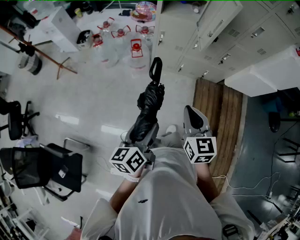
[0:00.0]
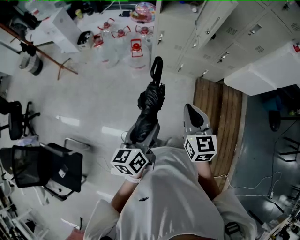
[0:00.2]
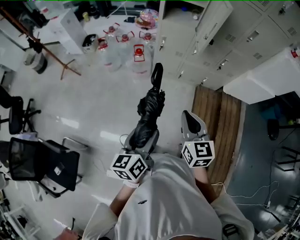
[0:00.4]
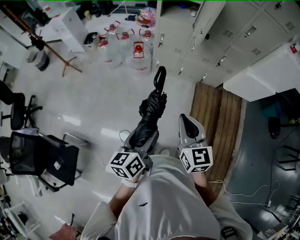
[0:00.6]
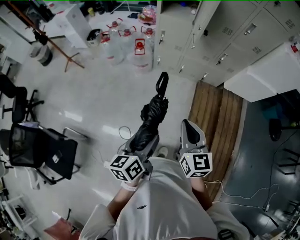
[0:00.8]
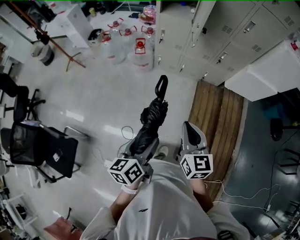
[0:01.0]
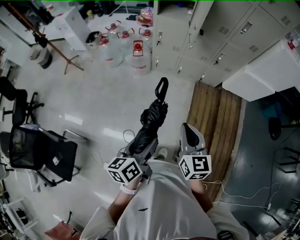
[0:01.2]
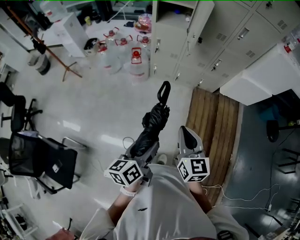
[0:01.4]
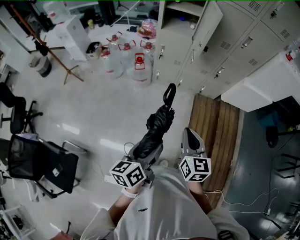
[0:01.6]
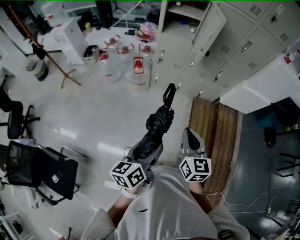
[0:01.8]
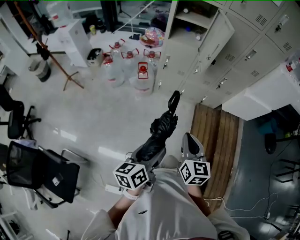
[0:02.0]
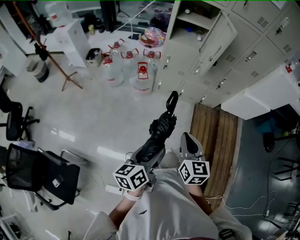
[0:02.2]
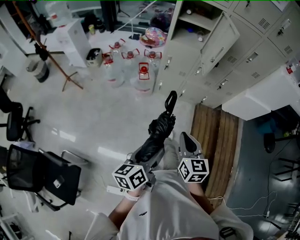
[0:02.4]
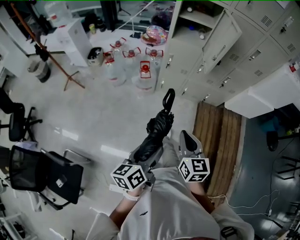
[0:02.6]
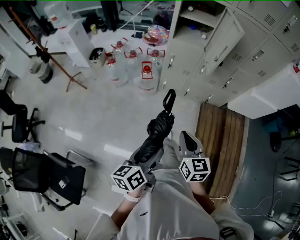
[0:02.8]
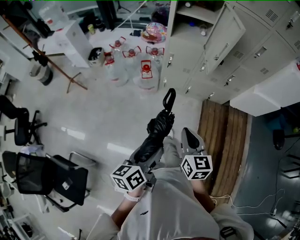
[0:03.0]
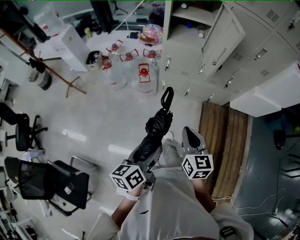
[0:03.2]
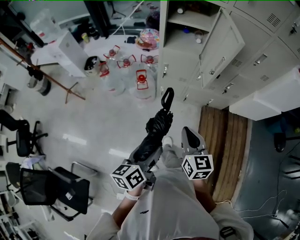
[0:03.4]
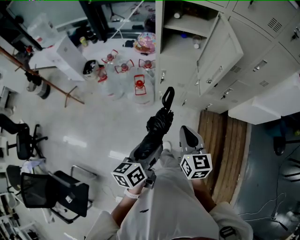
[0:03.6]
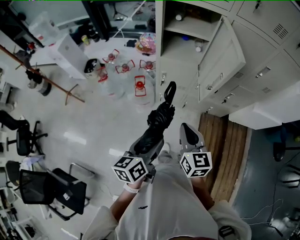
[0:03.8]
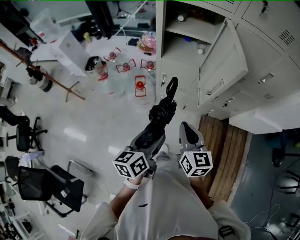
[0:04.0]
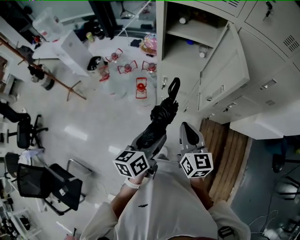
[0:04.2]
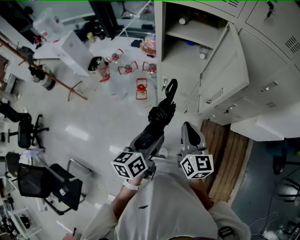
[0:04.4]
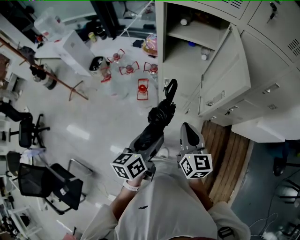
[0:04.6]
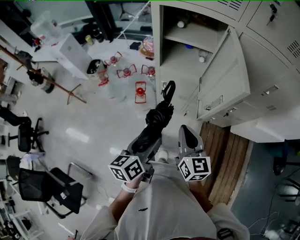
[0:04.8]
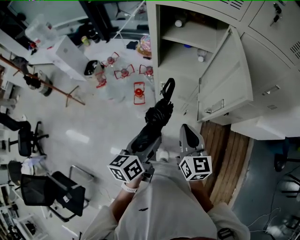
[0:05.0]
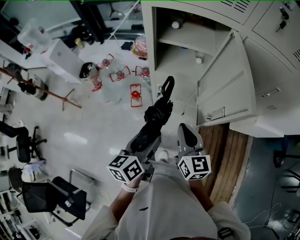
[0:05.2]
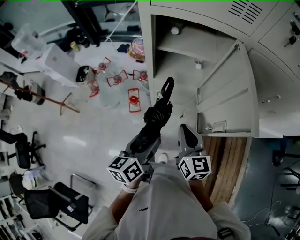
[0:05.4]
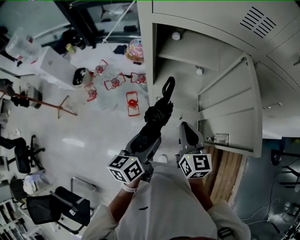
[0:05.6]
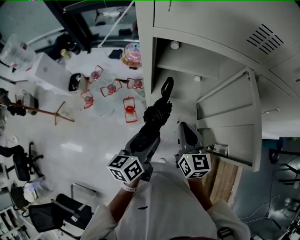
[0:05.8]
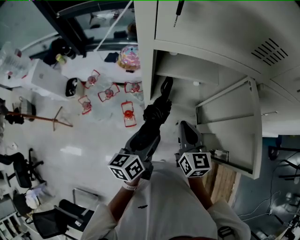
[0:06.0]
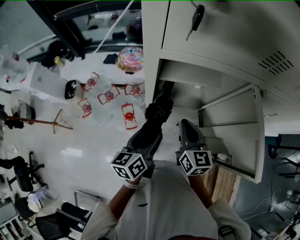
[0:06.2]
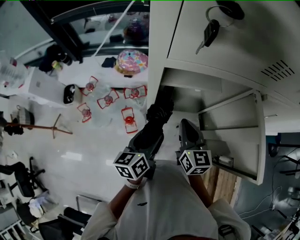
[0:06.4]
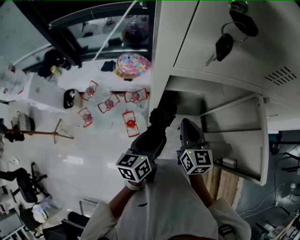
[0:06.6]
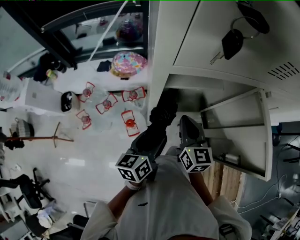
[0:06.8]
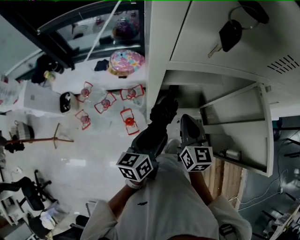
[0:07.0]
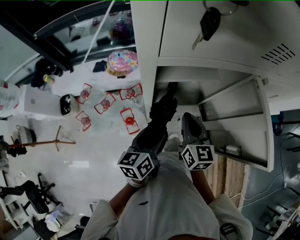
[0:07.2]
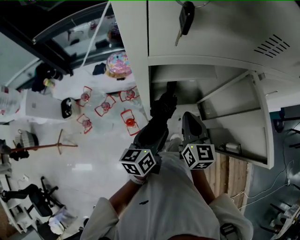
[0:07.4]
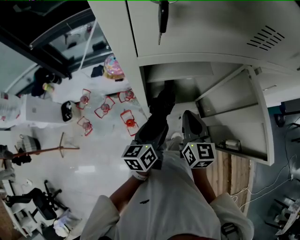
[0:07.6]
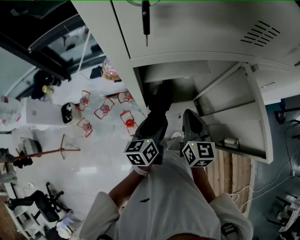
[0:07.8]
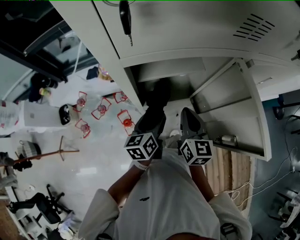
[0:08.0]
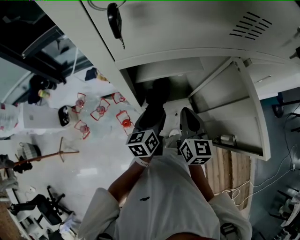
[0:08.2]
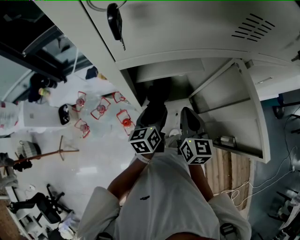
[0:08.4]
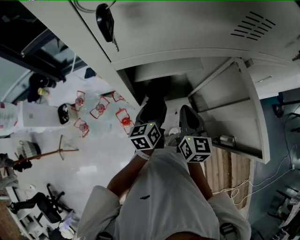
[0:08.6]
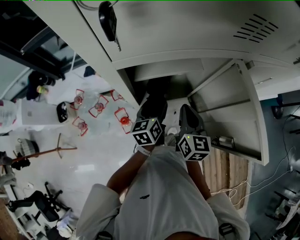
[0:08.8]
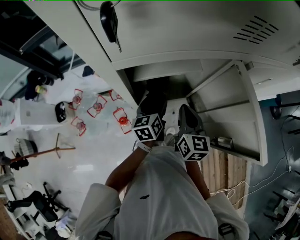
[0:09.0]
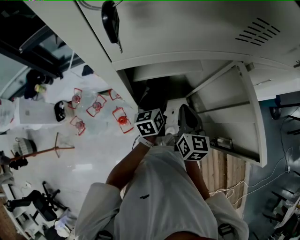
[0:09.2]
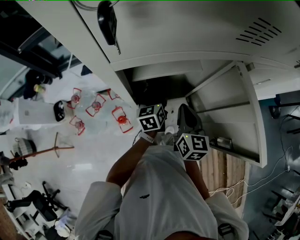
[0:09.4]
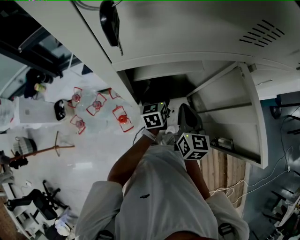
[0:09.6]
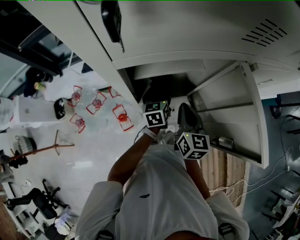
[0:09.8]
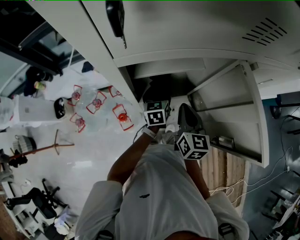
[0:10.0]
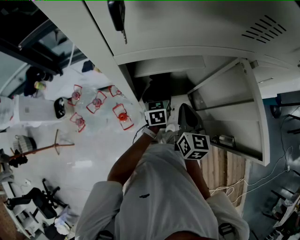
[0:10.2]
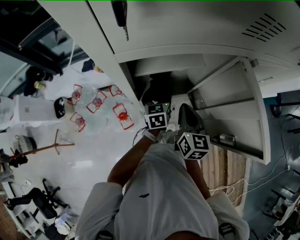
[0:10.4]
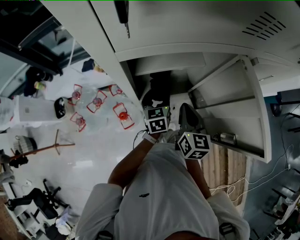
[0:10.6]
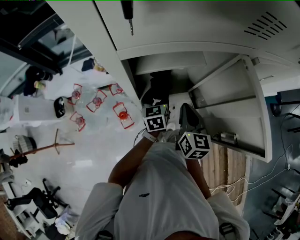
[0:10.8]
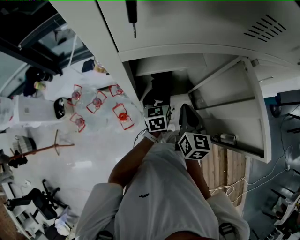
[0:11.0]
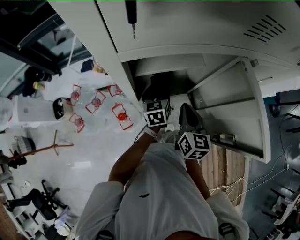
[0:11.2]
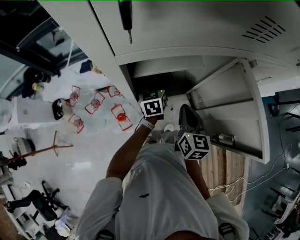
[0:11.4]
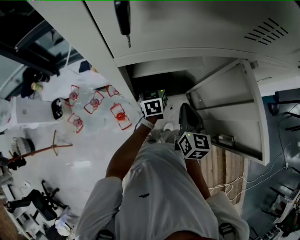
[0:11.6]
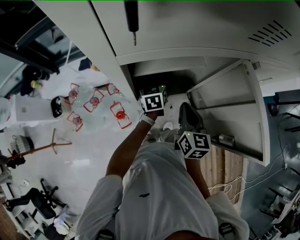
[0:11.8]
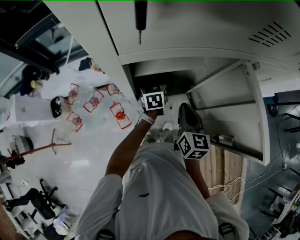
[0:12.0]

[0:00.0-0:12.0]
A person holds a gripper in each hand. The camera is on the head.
0:00.0 to 0:01.6: Both grippers travel together backward and to the right, roughly 15 cm.
0:01.6 to 0:03.0: The left gripper shifts some 15 cm to the left and forward; the right gripper goes roughly 15 cm forward and to the left.
0:03.0 to 0:04.4: The two grippers go roughly 30 cm forward.
0:04.4 to 0:06.0: The two grippers go about 25 cm forward.
0:06.0 to 0:07.6: The left gripper travels forward by some 5 cm.
0:07.6 to 0:09.0: The left gripper travels forward by roughly 10 cm.
0:10.4 to 0:12.0: The left gripper moves forward, some 5 cm.

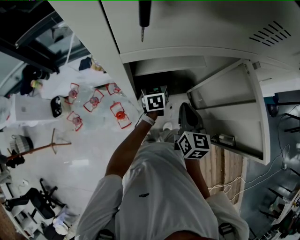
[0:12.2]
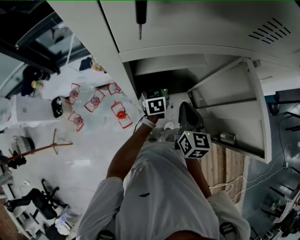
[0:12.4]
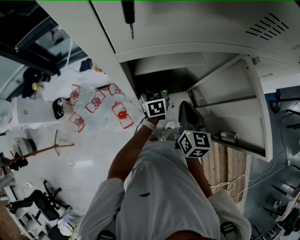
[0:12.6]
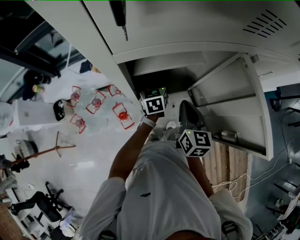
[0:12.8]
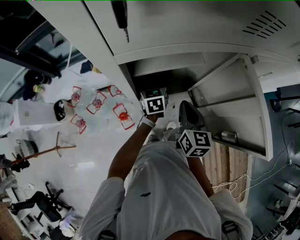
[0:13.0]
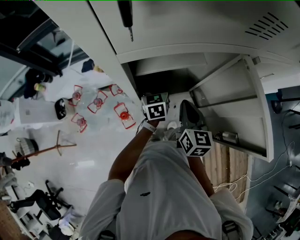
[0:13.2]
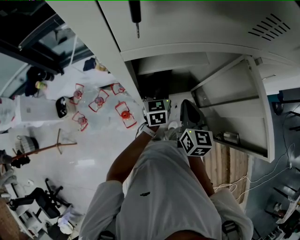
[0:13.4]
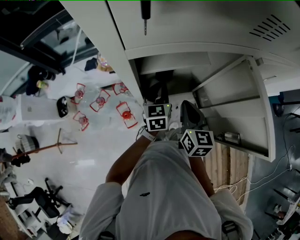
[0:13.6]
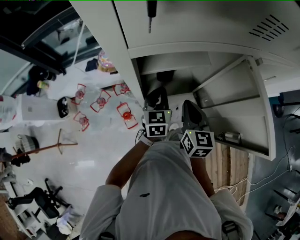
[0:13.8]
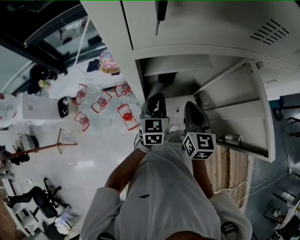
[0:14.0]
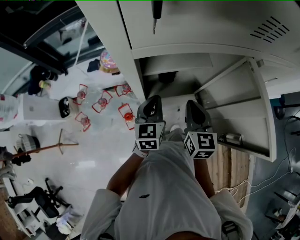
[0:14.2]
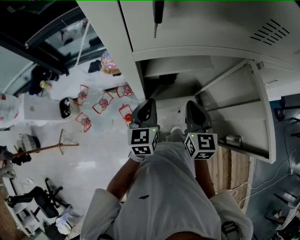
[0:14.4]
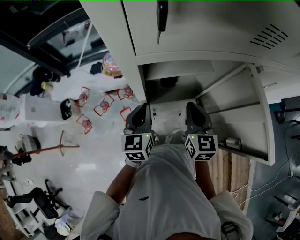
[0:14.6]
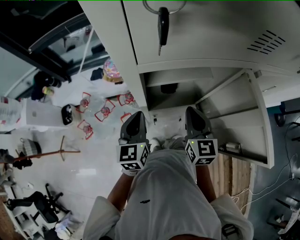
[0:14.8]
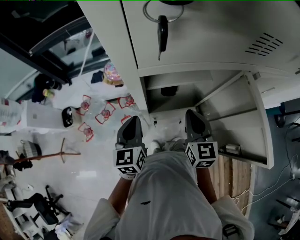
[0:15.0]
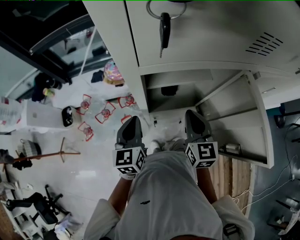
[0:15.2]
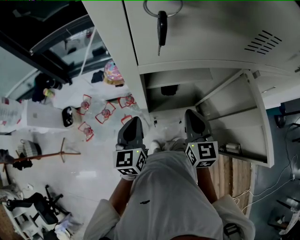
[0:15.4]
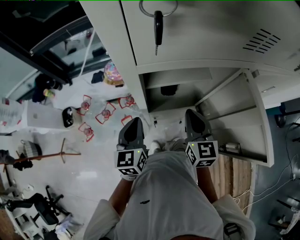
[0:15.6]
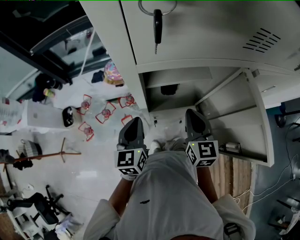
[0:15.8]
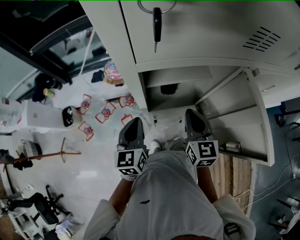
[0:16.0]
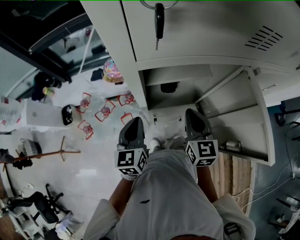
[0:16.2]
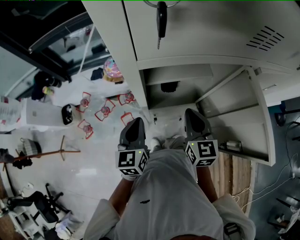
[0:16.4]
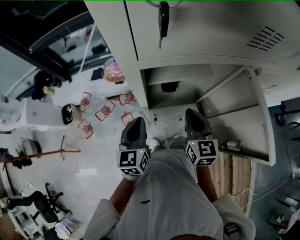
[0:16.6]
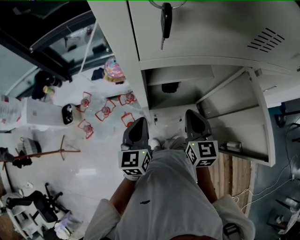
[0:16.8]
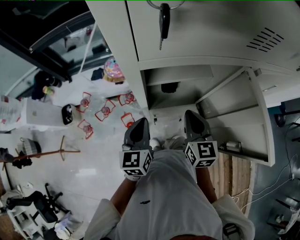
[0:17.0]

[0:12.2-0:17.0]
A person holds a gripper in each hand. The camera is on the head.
0:12.2 to 0:13.8: The left gripper travels backward and upward by about 10 cm, and closes up.
0:13.8 to 0:15.4: The left gripper travels to the left, backward and upward by approximately 15 cm.
0:15.4 to 0:17.0: The grippers make only small movements.

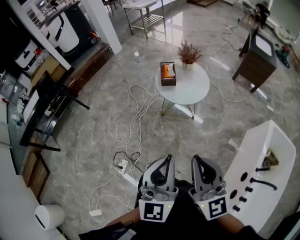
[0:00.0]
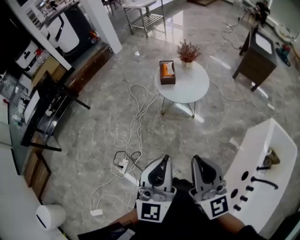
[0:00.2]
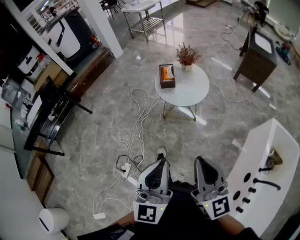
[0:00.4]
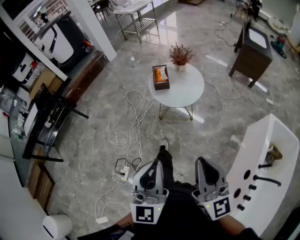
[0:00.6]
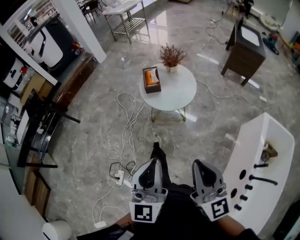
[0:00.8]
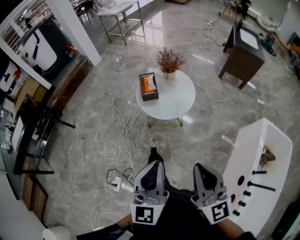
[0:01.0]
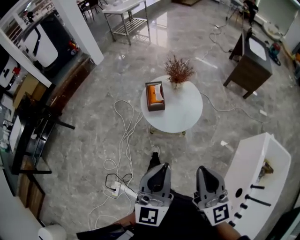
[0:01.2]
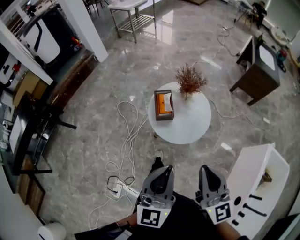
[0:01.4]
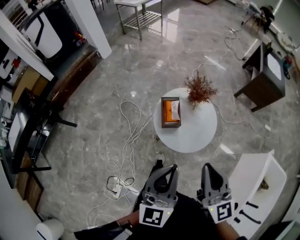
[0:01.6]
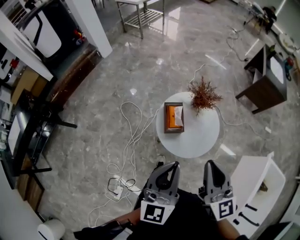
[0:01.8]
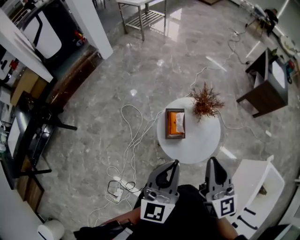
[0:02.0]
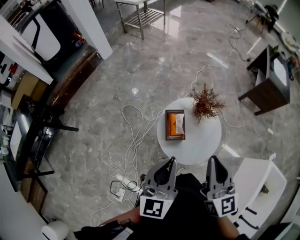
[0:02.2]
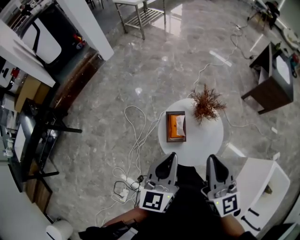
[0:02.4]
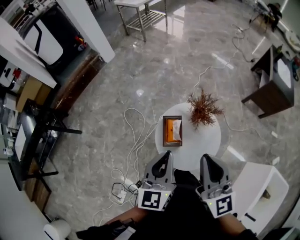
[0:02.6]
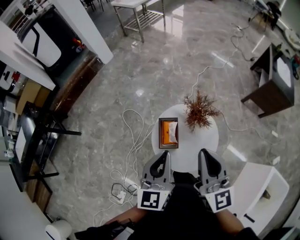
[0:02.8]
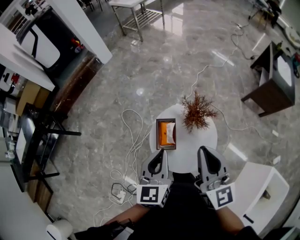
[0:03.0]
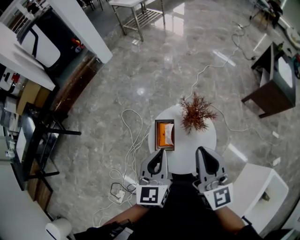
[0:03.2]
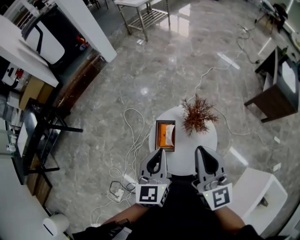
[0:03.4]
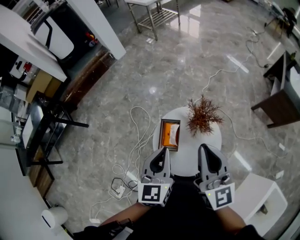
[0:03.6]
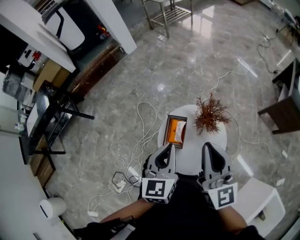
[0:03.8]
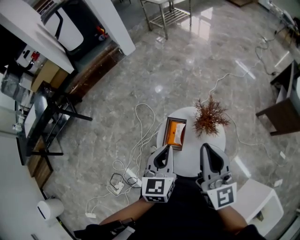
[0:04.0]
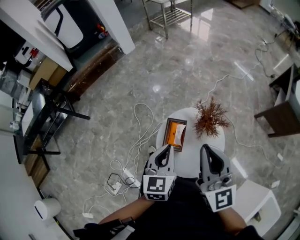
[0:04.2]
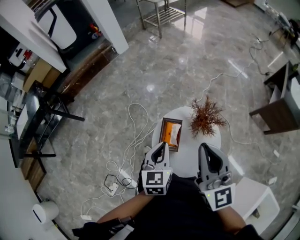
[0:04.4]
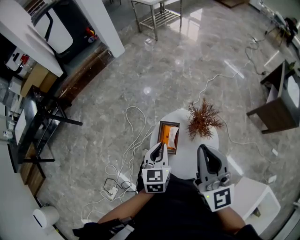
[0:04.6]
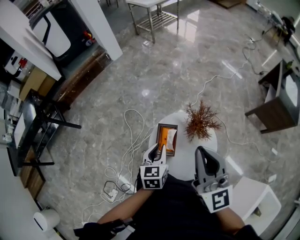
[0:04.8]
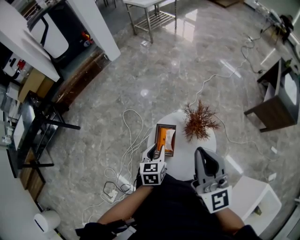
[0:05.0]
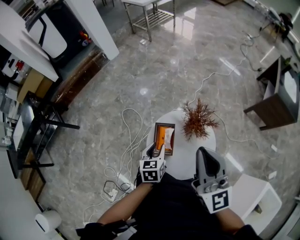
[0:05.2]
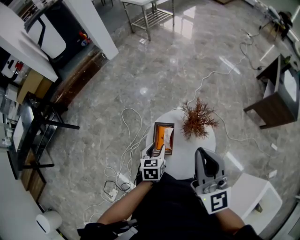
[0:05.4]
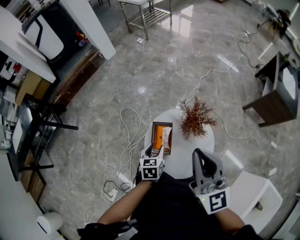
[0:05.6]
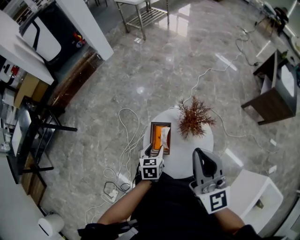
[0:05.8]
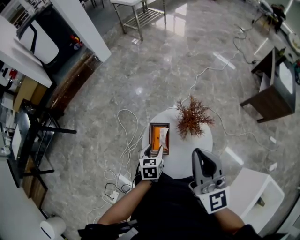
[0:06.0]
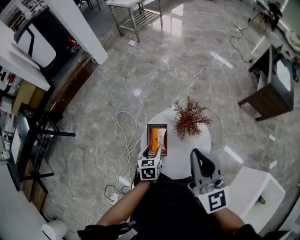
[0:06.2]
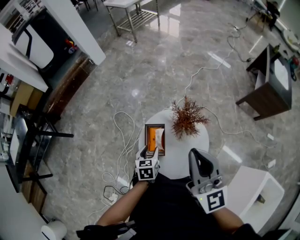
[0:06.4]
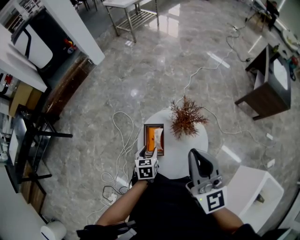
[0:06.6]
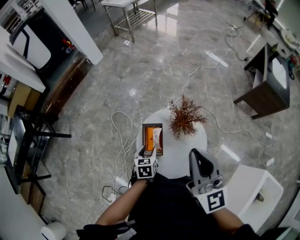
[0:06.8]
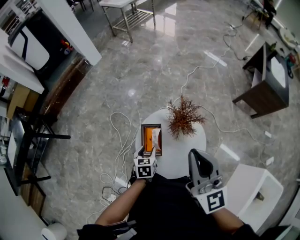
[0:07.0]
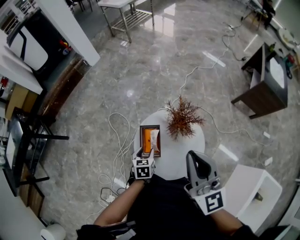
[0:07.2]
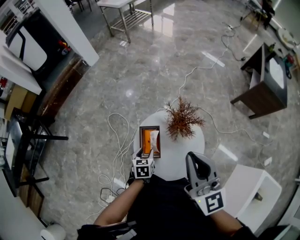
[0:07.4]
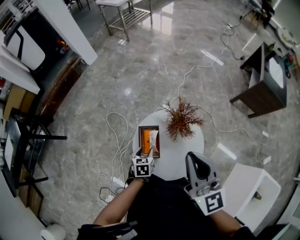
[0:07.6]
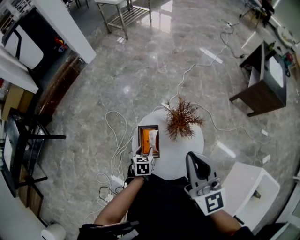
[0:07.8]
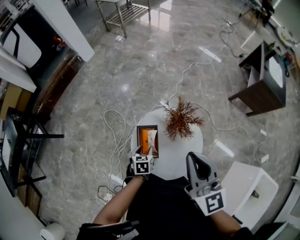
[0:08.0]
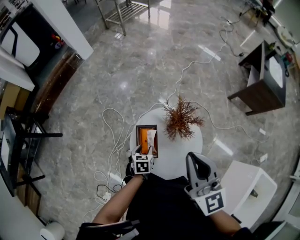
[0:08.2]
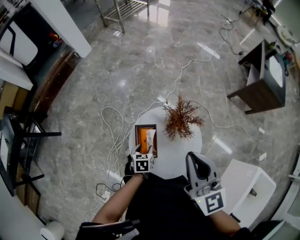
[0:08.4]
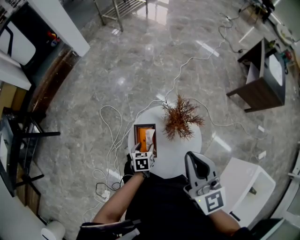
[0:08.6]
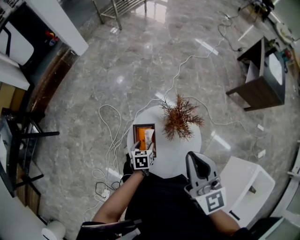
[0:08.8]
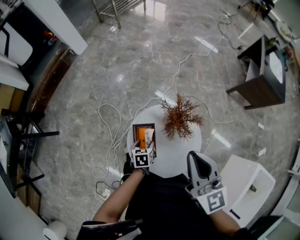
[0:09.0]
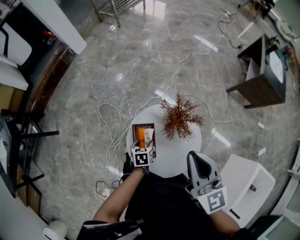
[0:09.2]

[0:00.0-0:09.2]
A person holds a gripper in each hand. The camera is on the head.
0:00.0 to 0:01.6: Both grippers travel together forward, some 35 cm.
0:01.6 to 0:03.0: The grippers both shift forward by some 20 cm. The left gripper changes its angle by some 30 degrees.
0:03.0 to 0:04.6: The left gripper is displaced downward by about 10 cm.
0:04.6 to 0:06.2: The left gripper heads downward, covering about 15 cm, and opens up.
0:06.2 to 0:07.6: The left gripper goes roughly 5 cm downward.
0:07.6 to 0:09.2: The right gripper changes place by roughly 5 cm, while the left gripper moves downward, approximately 5 cm.
